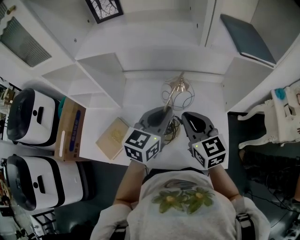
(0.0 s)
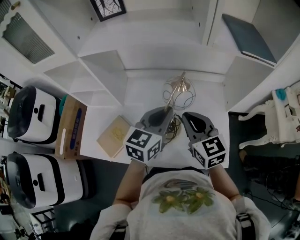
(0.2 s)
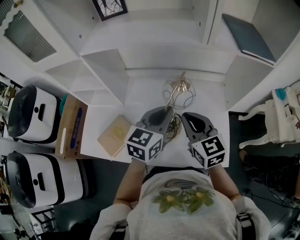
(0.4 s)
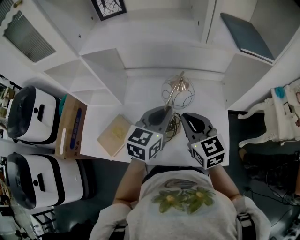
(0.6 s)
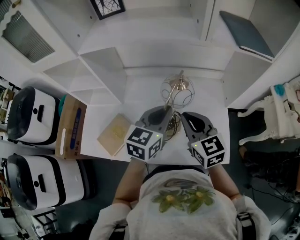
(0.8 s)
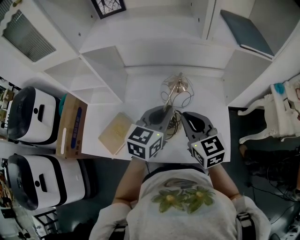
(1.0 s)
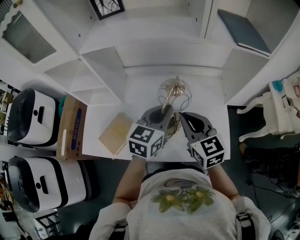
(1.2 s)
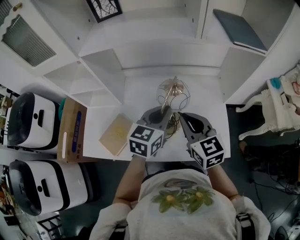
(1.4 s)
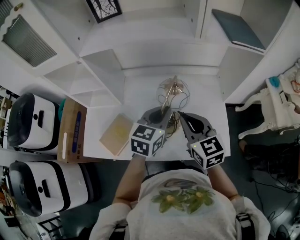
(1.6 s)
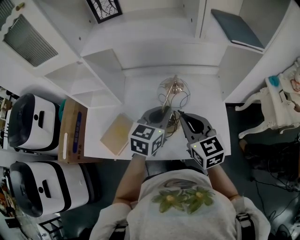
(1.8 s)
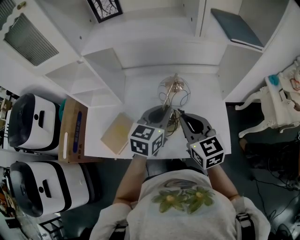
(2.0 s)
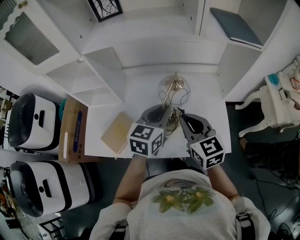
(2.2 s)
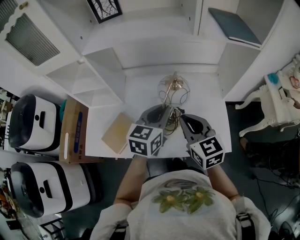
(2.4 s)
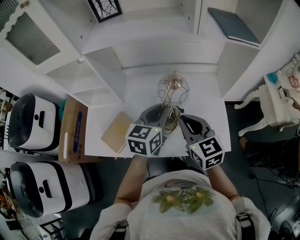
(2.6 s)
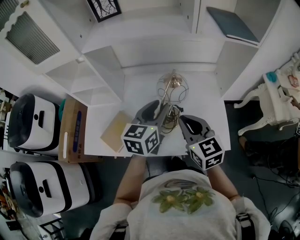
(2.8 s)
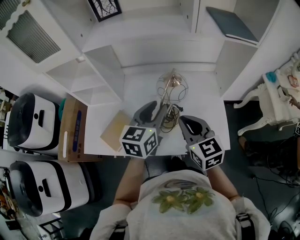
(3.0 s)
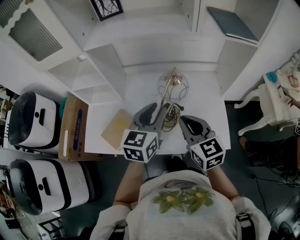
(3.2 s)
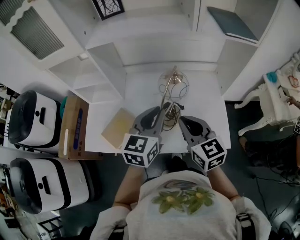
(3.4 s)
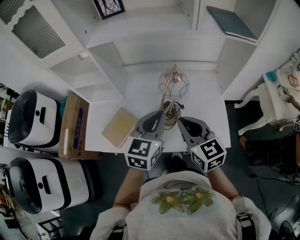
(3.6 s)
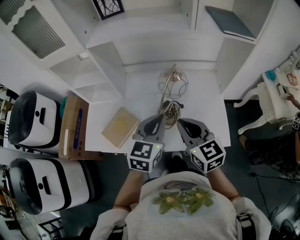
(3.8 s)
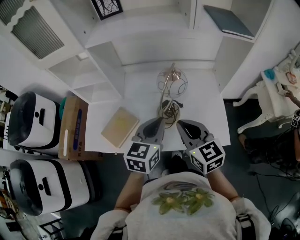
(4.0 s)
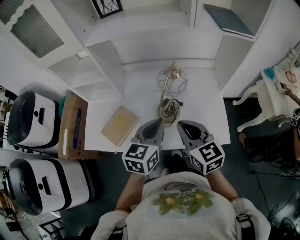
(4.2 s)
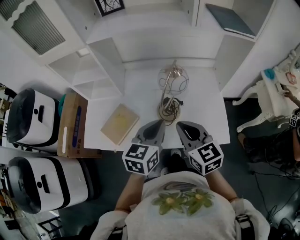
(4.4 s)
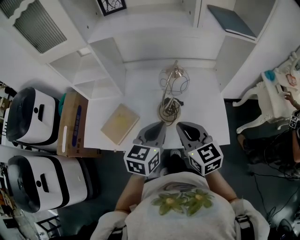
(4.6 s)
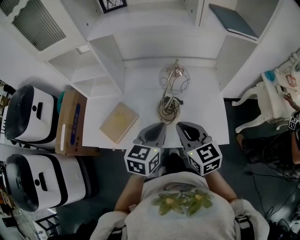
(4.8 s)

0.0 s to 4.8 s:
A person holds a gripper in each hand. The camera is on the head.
0.0 to 1.6 s: The right gripper is displaced backward by about 5 cm.
1.6 to 3.2 s: The right gripper heads backward, covering some 5 cm, while the left gripper shifts by roughly 5 cm, and opens up.
3.2 to 4.8 s: The right gripper ends up roughly 5 cm from where it was; the left gripper travels backward and downward by some 10 cm, and closes.

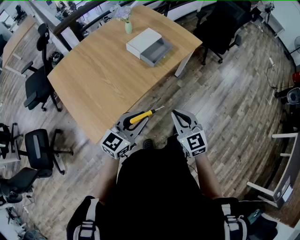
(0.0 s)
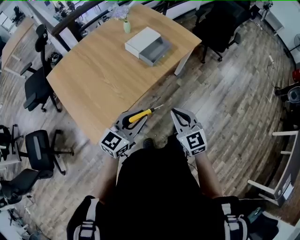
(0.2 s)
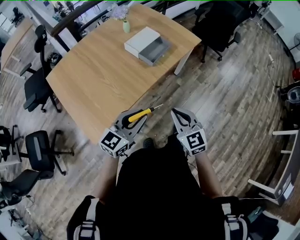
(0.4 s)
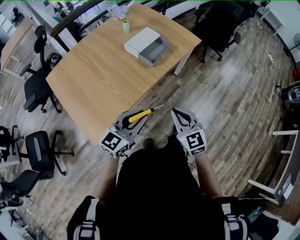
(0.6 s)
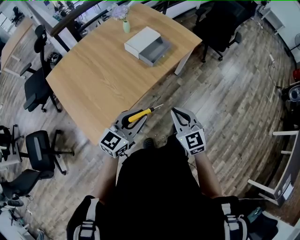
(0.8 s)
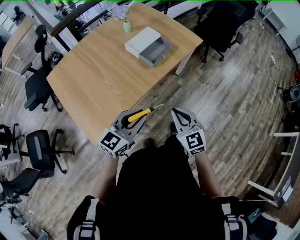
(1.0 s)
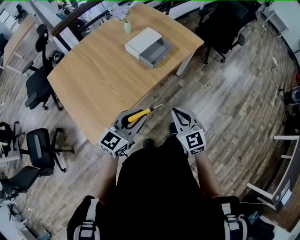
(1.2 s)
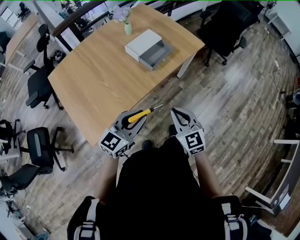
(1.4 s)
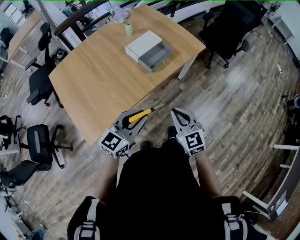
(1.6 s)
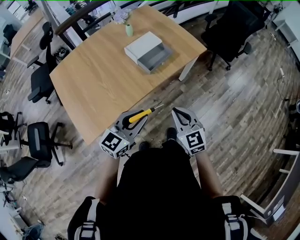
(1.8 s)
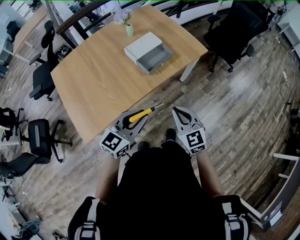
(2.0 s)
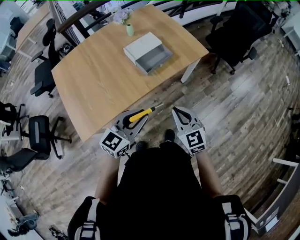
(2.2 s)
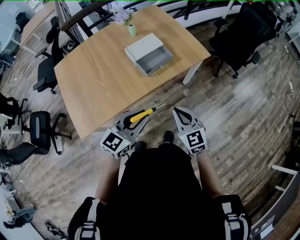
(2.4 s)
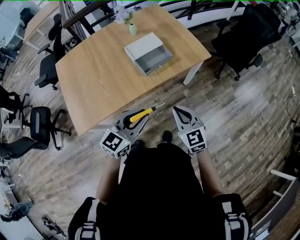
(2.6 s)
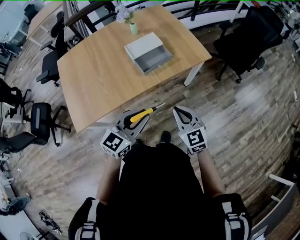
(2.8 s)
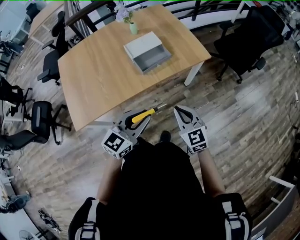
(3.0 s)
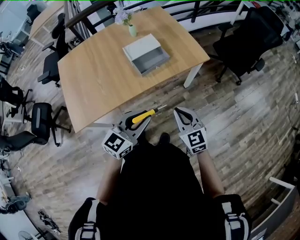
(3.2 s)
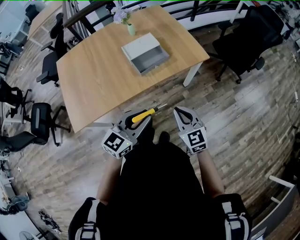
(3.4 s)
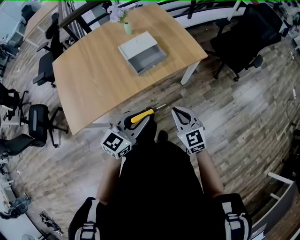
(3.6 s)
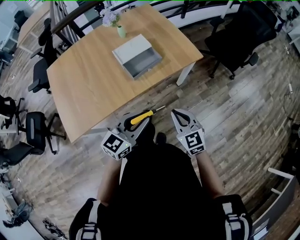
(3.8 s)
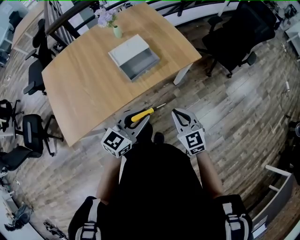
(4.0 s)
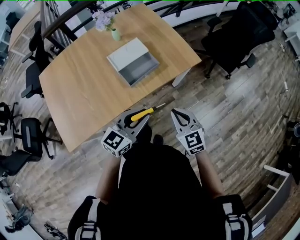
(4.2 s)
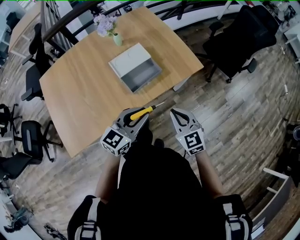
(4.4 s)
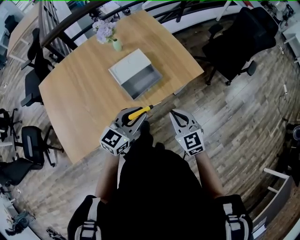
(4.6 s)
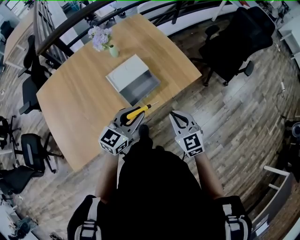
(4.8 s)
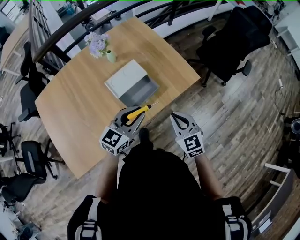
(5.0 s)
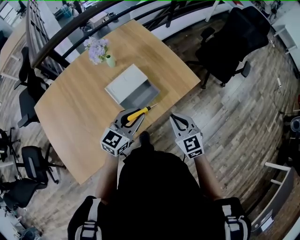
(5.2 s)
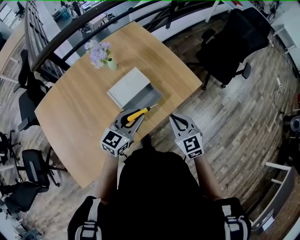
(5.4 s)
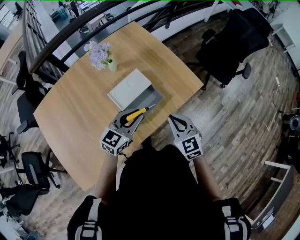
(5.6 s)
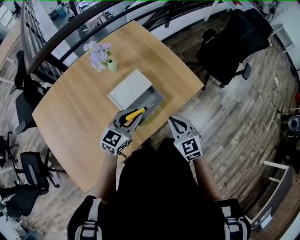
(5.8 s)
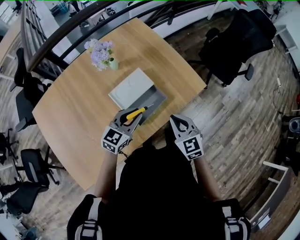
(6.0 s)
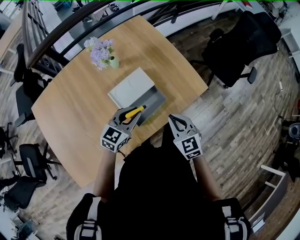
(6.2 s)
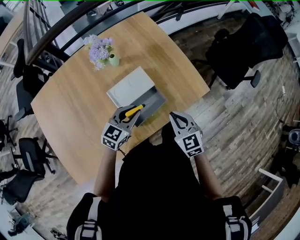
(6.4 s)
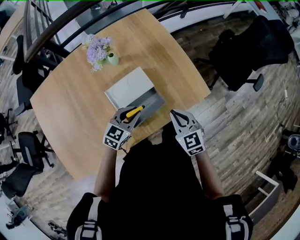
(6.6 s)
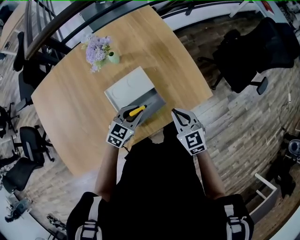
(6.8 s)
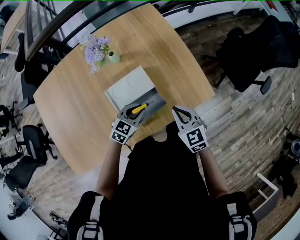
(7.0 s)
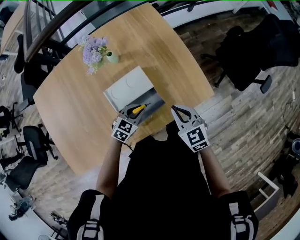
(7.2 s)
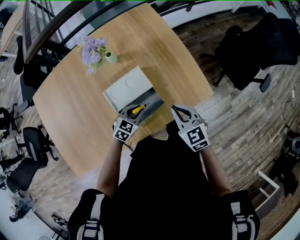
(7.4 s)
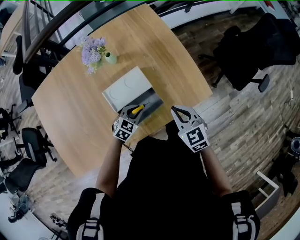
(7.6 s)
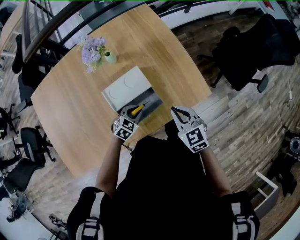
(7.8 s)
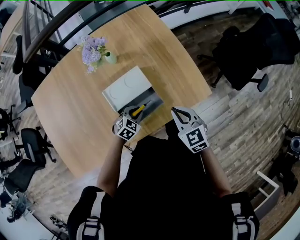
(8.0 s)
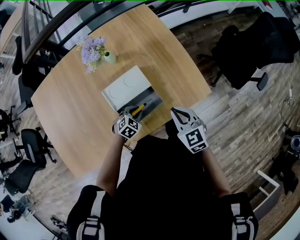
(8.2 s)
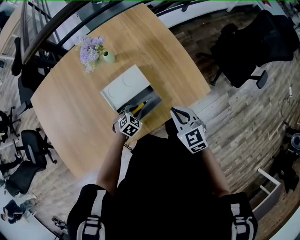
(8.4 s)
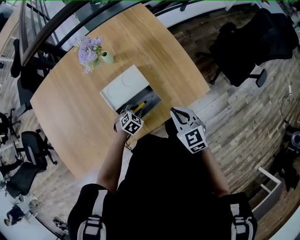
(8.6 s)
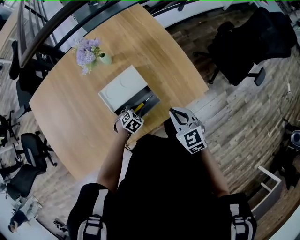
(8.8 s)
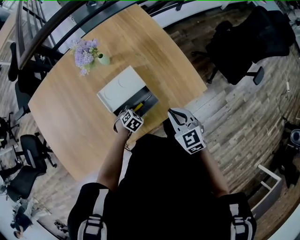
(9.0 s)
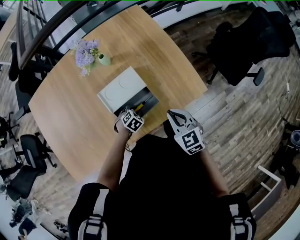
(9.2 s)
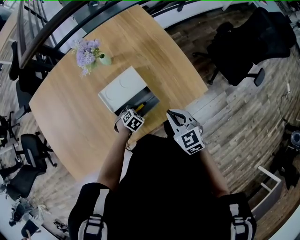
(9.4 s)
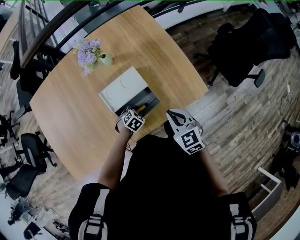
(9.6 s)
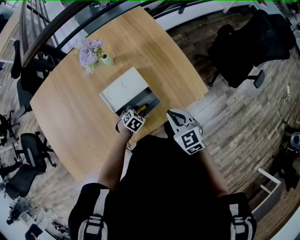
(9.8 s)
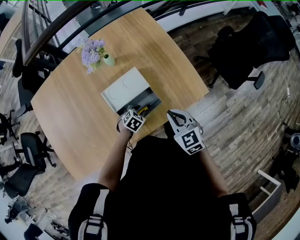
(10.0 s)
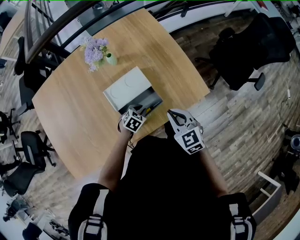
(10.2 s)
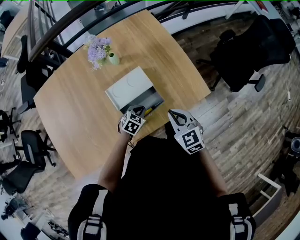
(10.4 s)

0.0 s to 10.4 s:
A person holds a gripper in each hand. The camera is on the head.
0.0 to 1.4 s: Both grippers travel together forward, about 5 cm.
1.4 to 3.0 s: The right gripper shifts approximately 20 cm to the right and forward, while the left gripper travels to the right by approximately 20 cm.
3.0 to 4.4 s: The grippers both shift forward by roughly 15 cm.
4.4 to 6.0 s: Both grippers move forward and to the left, approximately 20 cm.
6.0 to 7.4 s: The right gripper is displaced forward by about 10 cm. The left gripper moves downward, about 15 cm, and turns by some 30 degrees.
7.4 to 9.0 s: The left gripper is displaced downward by some 10 cm, and swivels approximately 30 degrees.
9.0 to 10.4 s: The left gripper travels upward by some 5 cm.

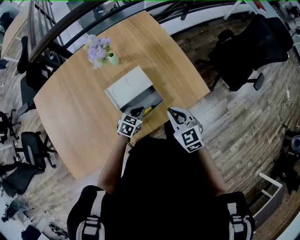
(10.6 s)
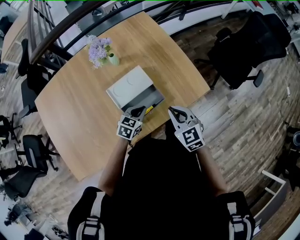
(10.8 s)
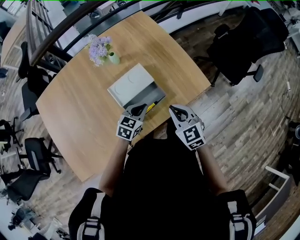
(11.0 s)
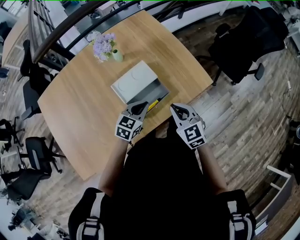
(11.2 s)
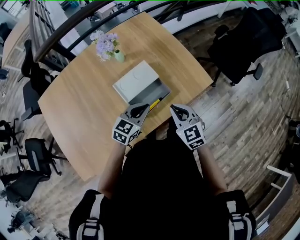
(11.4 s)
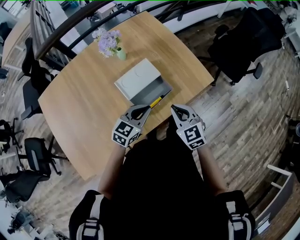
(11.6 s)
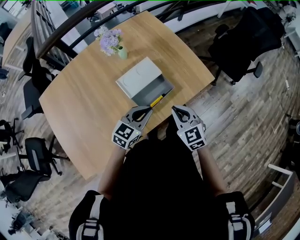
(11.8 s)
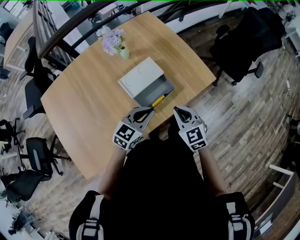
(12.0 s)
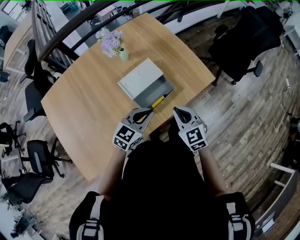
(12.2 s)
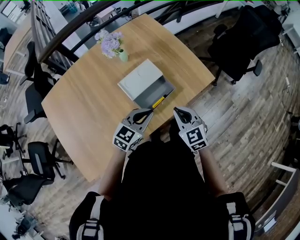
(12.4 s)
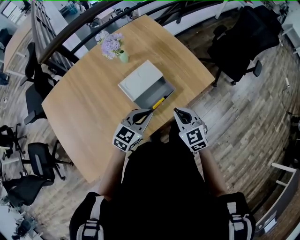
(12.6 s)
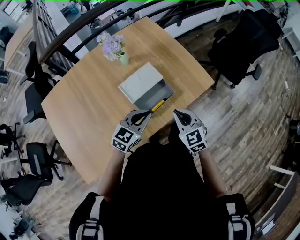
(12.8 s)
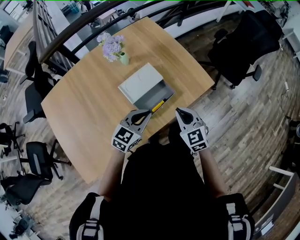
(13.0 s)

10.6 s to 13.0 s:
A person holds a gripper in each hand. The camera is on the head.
10.6 to 11.8 s: The left gripper goes approximately 15 cm upward and backward, and rotates some 30 degrees. The right gripper goes approximately 10 cm backward.
11.8 to 13.0 s: The grippers stay close to where they were, moving slightly.

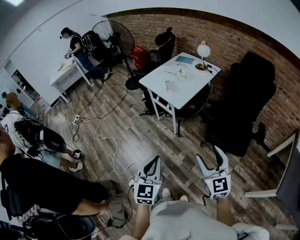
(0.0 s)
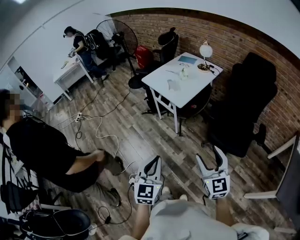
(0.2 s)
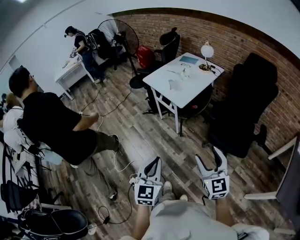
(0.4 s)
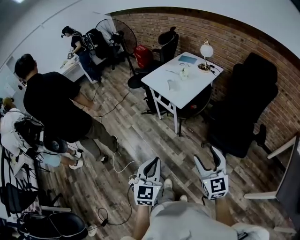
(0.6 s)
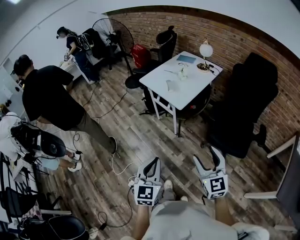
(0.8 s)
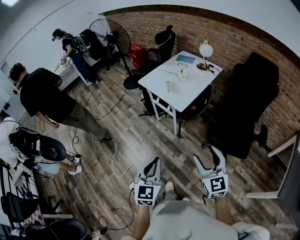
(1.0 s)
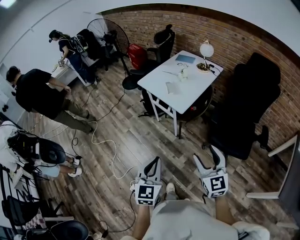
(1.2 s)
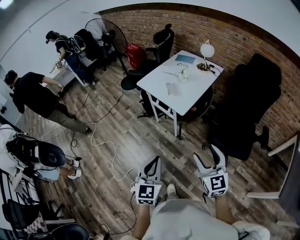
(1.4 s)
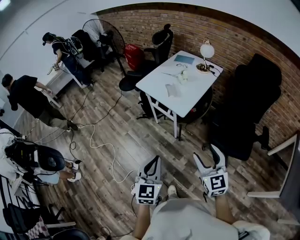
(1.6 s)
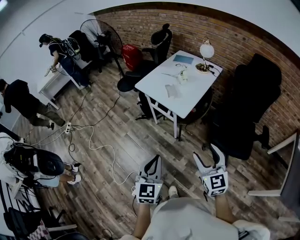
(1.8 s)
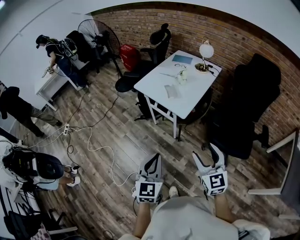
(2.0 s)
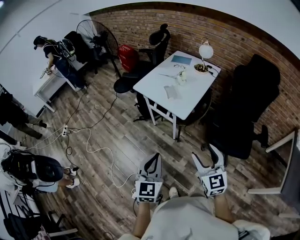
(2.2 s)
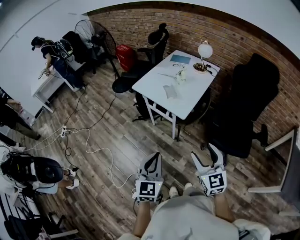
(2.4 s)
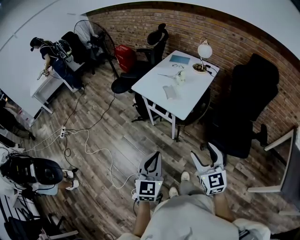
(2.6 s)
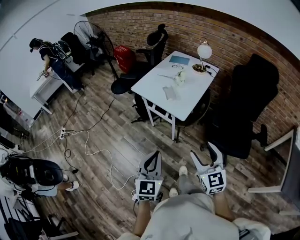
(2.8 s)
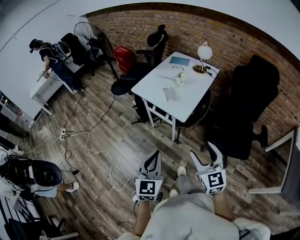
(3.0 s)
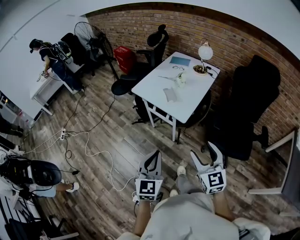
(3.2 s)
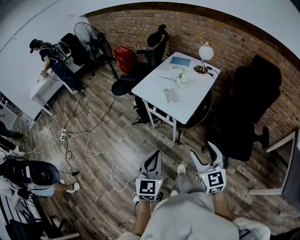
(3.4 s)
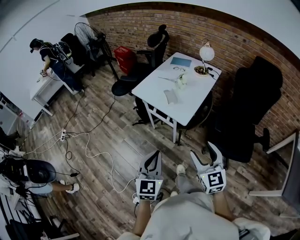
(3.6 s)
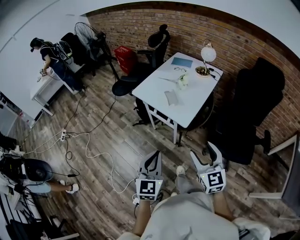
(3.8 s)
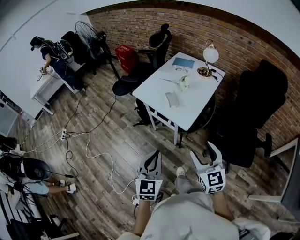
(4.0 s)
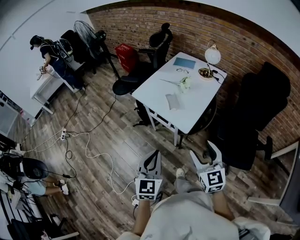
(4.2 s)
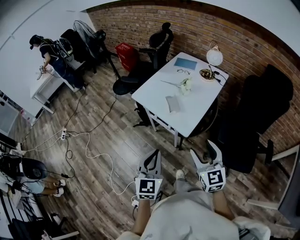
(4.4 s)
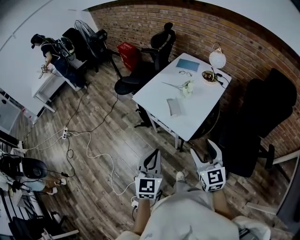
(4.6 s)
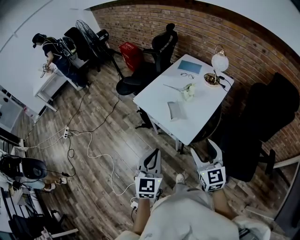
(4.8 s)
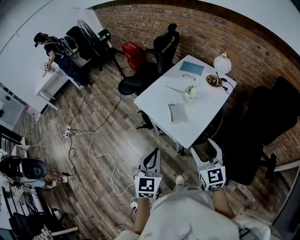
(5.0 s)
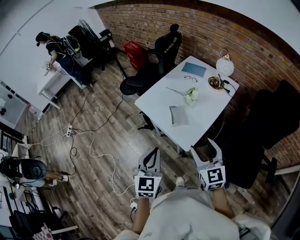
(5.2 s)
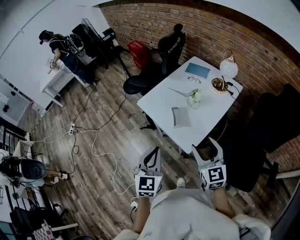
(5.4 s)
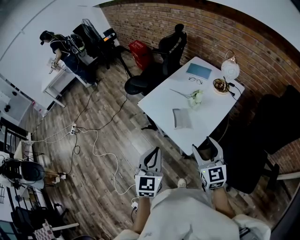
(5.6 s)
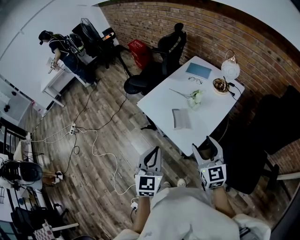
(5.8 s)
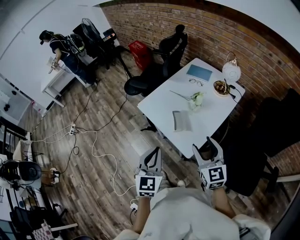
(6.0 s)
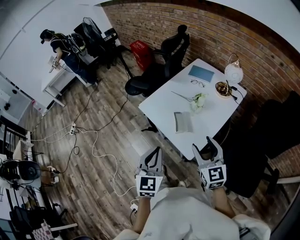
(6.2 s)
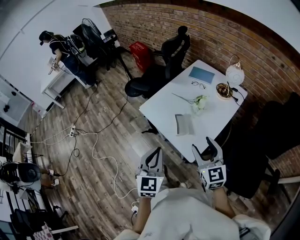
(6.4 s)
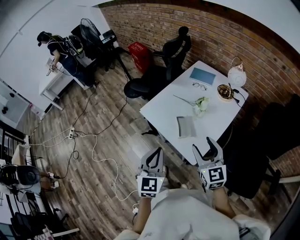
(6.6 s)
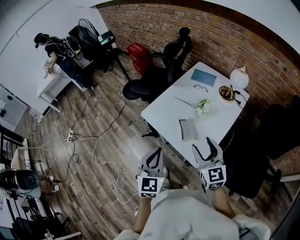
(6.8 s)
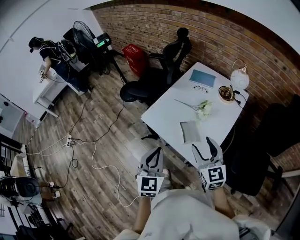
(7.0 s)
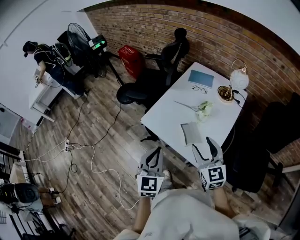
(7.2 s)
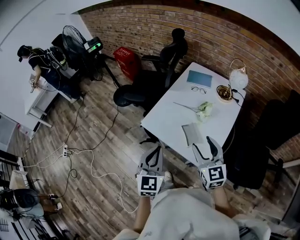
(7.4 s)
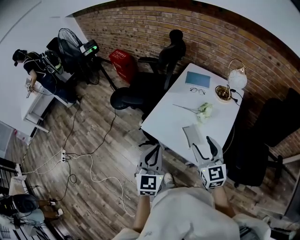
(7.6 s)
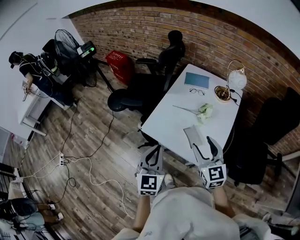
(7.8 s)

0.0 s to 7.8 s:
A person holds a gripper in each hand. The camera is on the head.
0.0 to 1.6 s: The right gripper shifts some 15 cm forward and to the left. The left gripper moves forward, roughly 15 cm.
1.6 to 3.2 s: The right gripper is displaced forward and to the left by approximately 10 cm; the left gripper moves forward, approximately 10 cm.
3.2 to 4.6 s: Both grippers move forward, roughly 20 cm.
4.6 to 6.2 s: Both grippers move forward, some 15 cm.
6.2 to 7.8 s: The right gripper travels to the left and forward by approximately 20 cm; the left gripper travels forward and to the left by approximately 25 cm.
